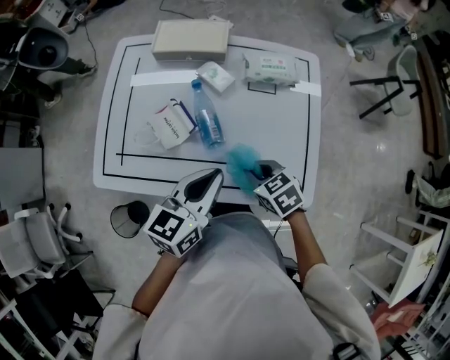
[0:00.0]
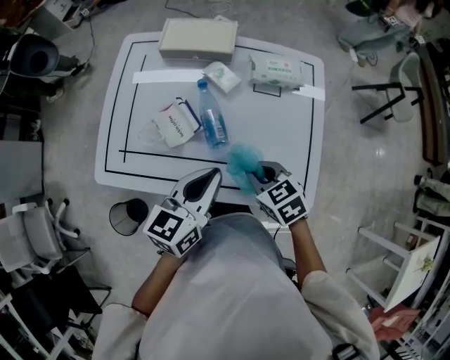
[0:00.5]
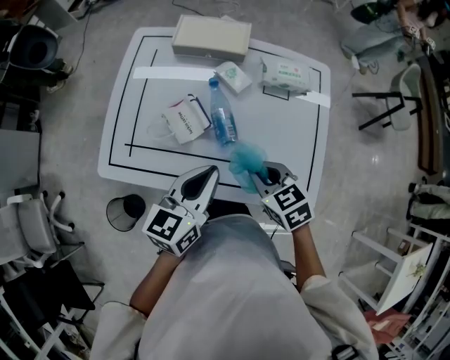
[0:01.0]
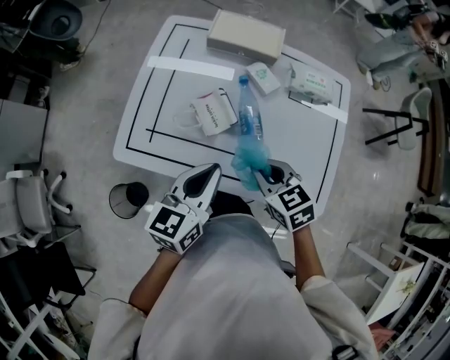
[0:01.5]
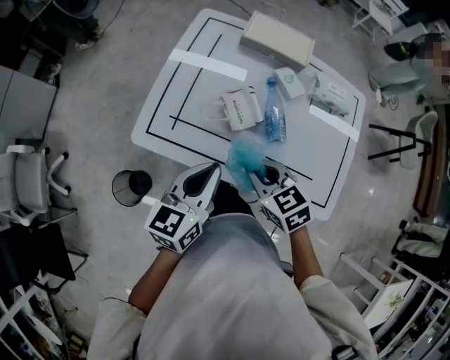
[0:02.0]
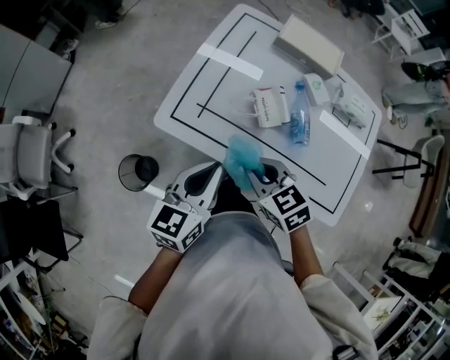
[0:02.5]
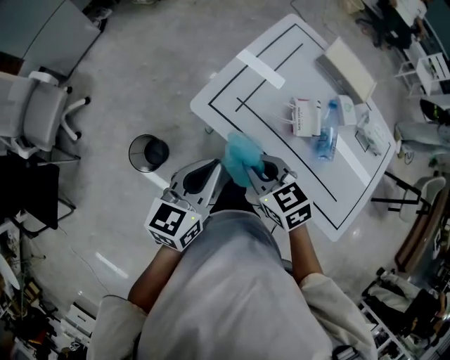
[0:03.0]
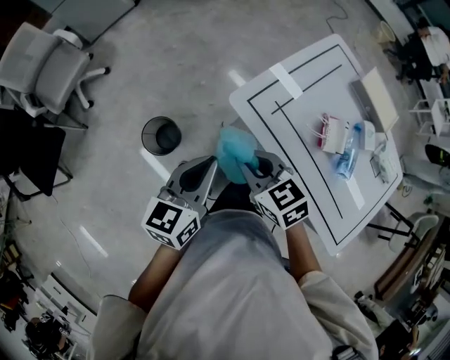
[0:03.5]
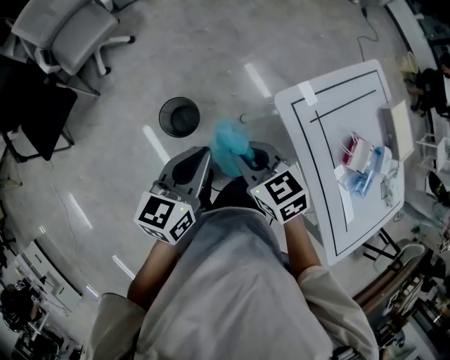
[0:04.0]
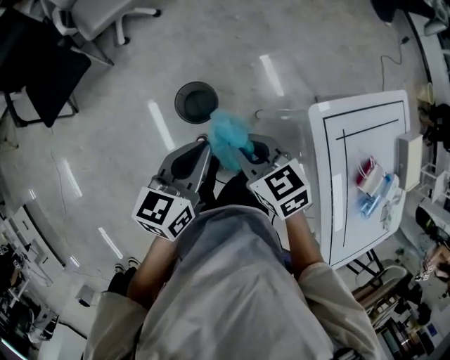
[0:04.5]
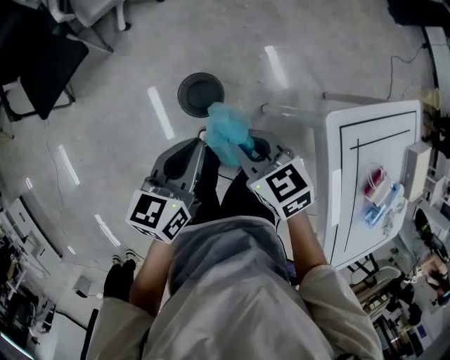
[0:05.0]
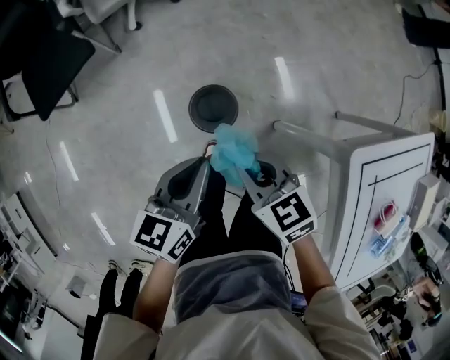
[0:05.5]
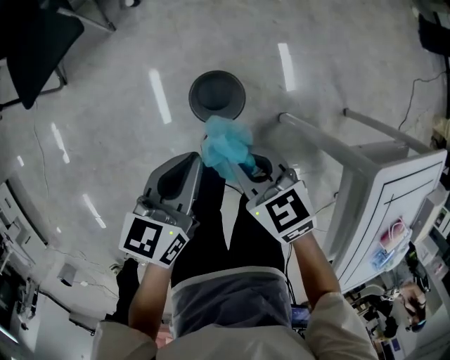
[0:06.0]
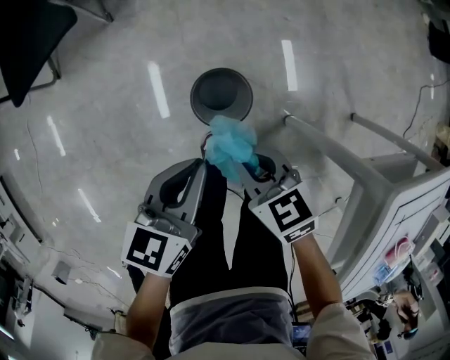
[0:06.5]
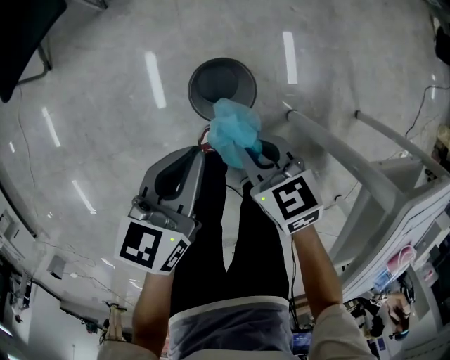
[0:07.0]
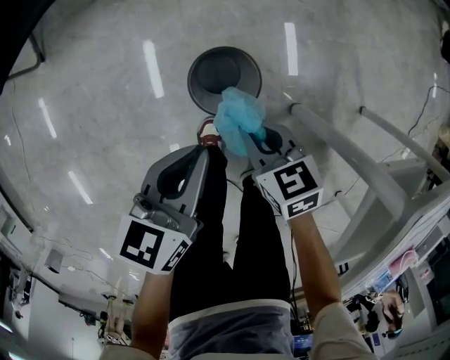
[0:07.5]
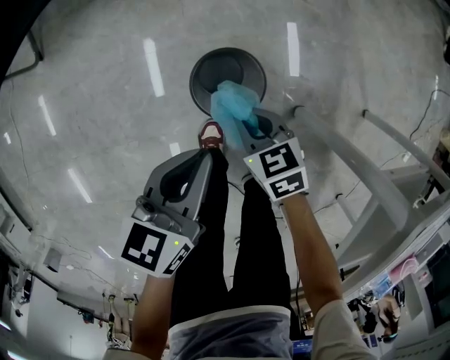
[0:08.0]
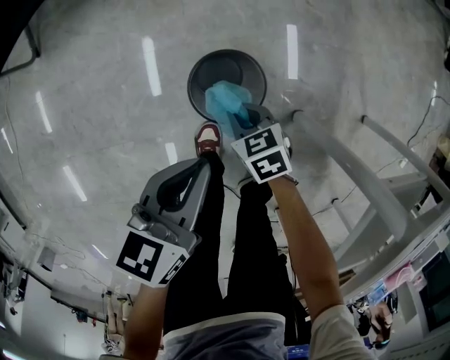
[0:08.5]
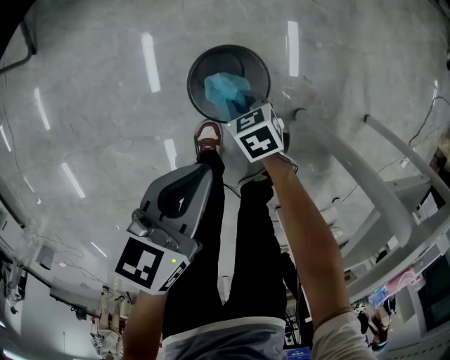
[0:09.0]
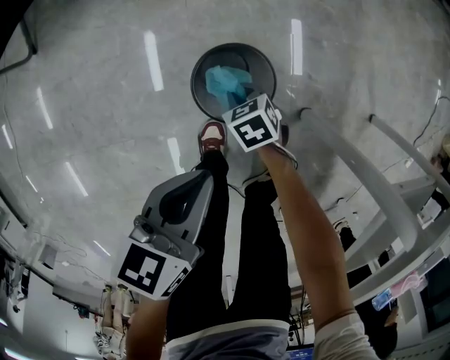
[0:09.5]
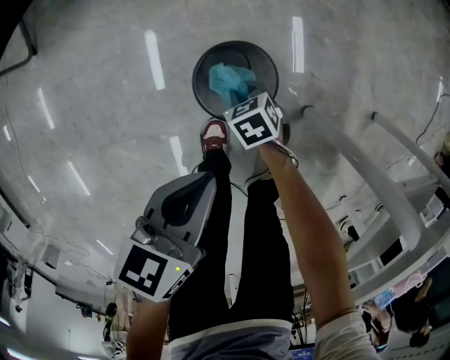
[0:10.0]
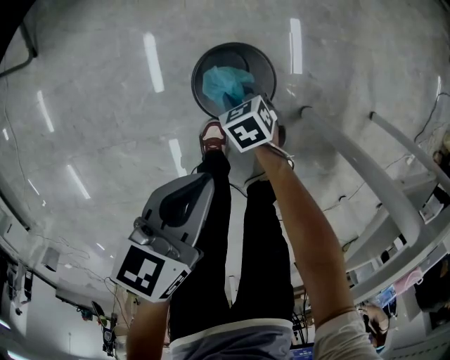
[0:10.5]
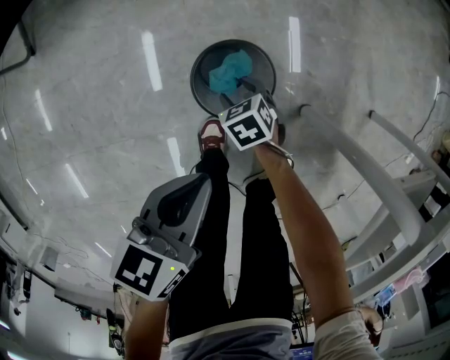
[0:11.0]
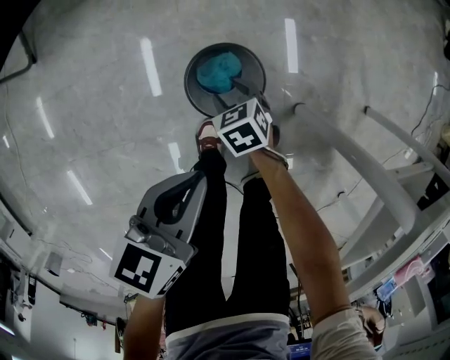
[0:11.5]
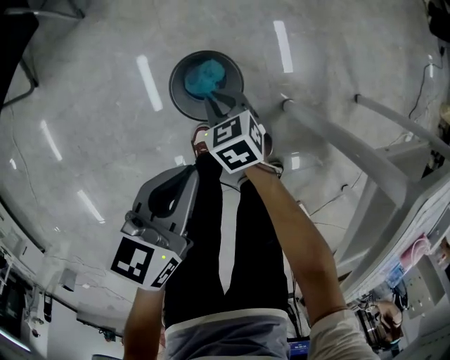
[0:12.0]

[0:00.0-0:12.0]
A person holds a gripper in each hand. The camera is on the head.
0:00.0 to 0:02.0: The right gripper goes roughly 20 cm to the left and upward; the left gripper heads to the left, covering roughly 20 cm.
0:02.0 to 0:04.0: The left gripper ends up about 40 cm from where it was, and changes its angle by roughly 40 degrees. Meanwhile the right gripper moves about 40 cm, and changes its angle by about 40 degrees.
0:04.0 to 0:06.0: The grippers both shift downward, to the left and forward by about 30 cm. The left gripper swivels about 20 degrees, while the right gripper turns by approximately 20 degrees.
0:06.0 to 0:08.0: The left gripper goes approximately 15 cm downward; the right gripper goes about 25 cm downward.
0:08.0 to 0:10.0: The right gripper heads downward, covering roughly 15 cm.
0:10.0 to 0:12.0: The right gripper shifts roughly 15 cm upward, and opens, then closes again. Meanwhile the left gripper is displaced upward by some 5 cm.

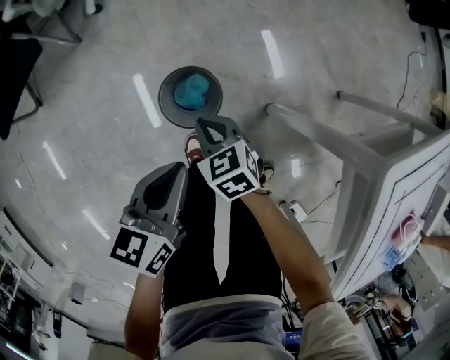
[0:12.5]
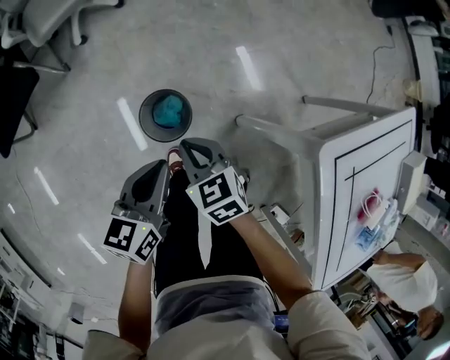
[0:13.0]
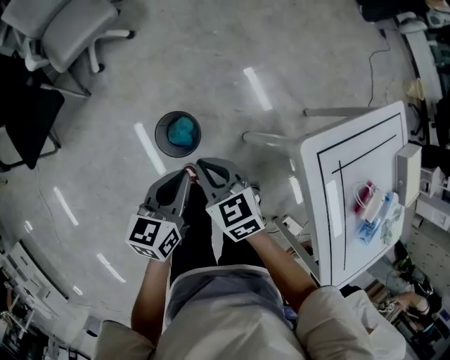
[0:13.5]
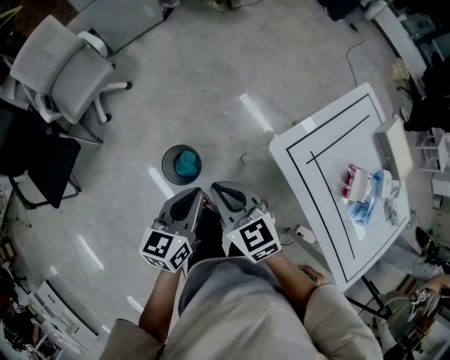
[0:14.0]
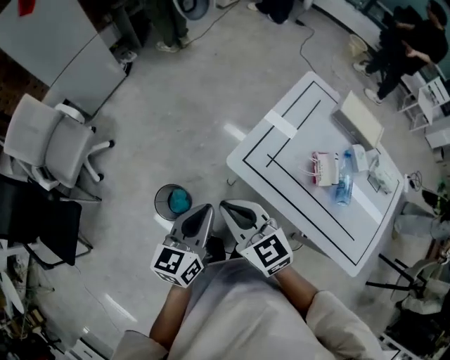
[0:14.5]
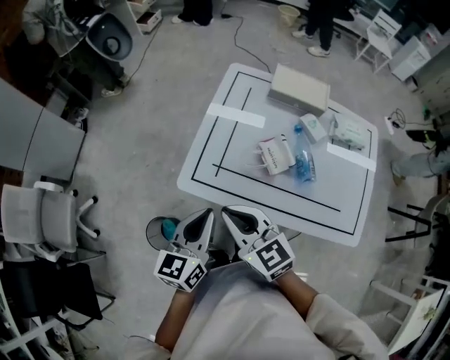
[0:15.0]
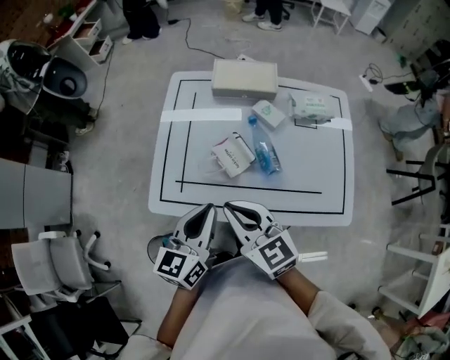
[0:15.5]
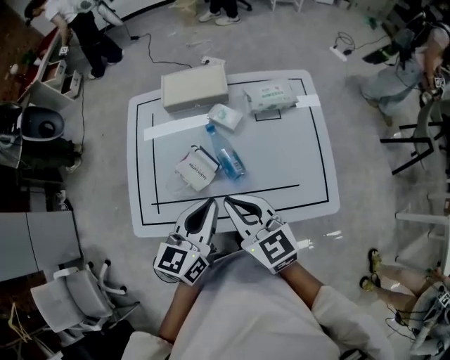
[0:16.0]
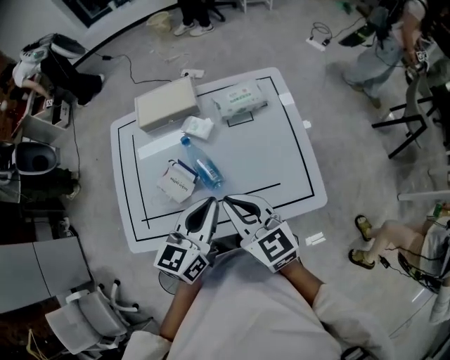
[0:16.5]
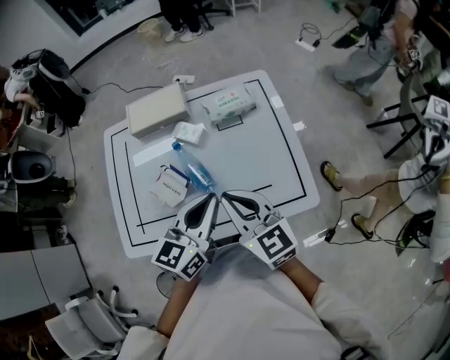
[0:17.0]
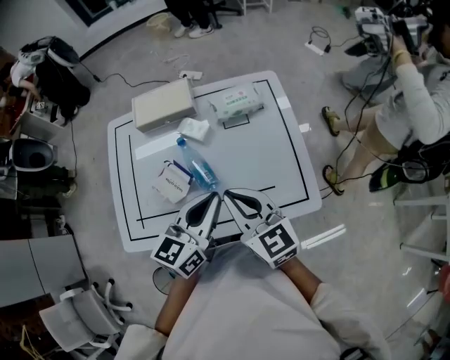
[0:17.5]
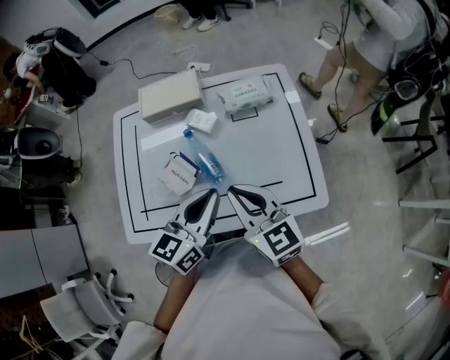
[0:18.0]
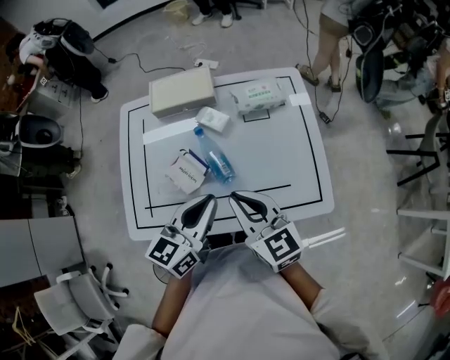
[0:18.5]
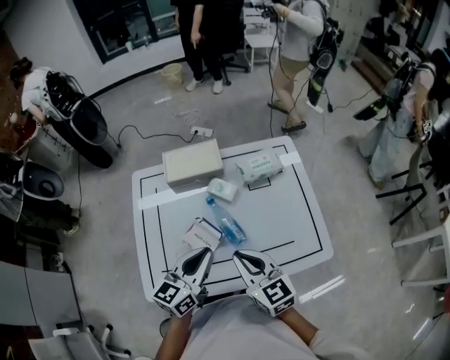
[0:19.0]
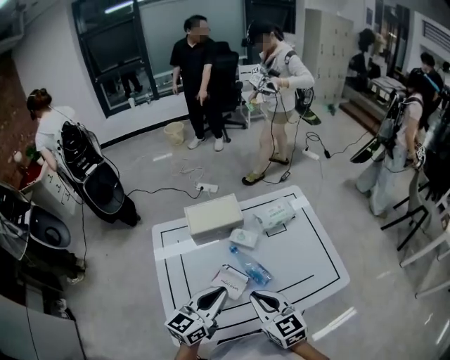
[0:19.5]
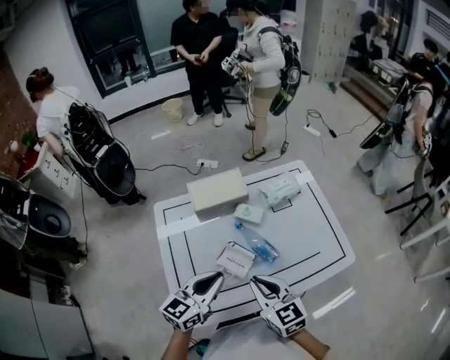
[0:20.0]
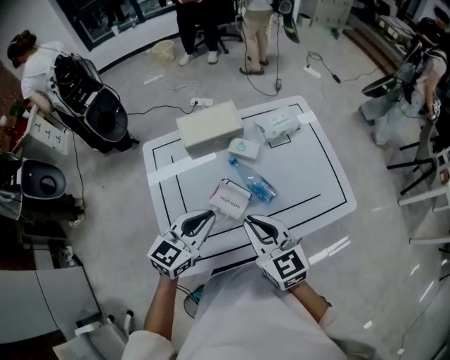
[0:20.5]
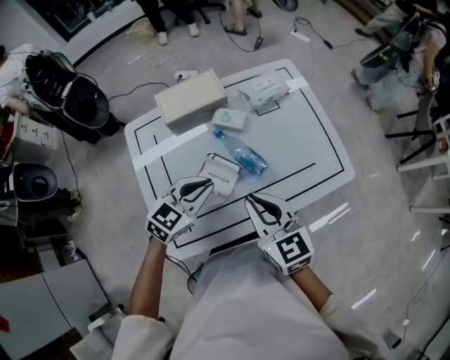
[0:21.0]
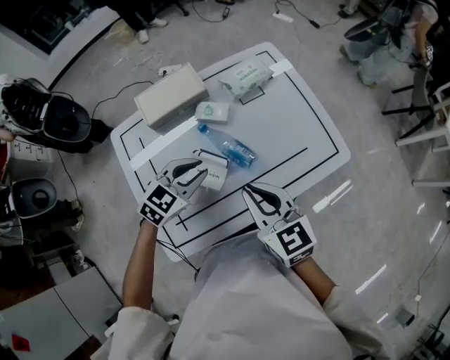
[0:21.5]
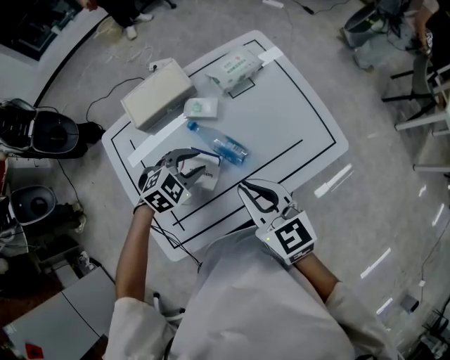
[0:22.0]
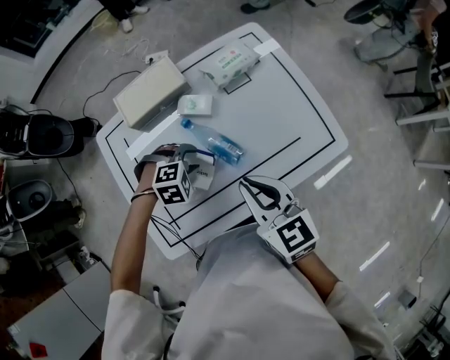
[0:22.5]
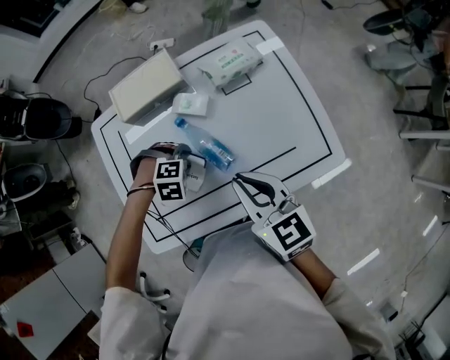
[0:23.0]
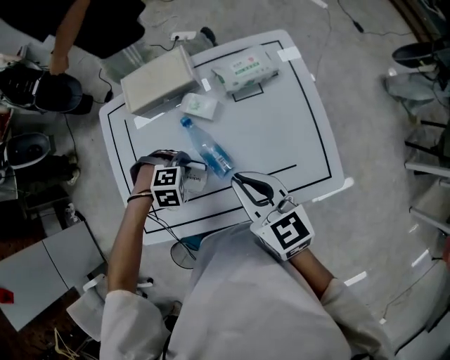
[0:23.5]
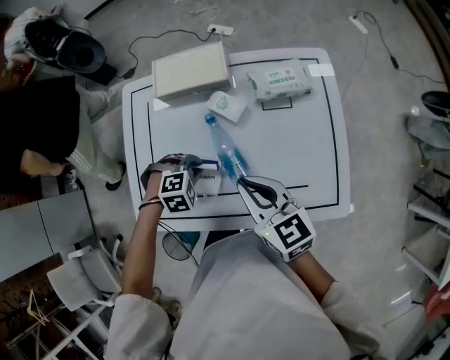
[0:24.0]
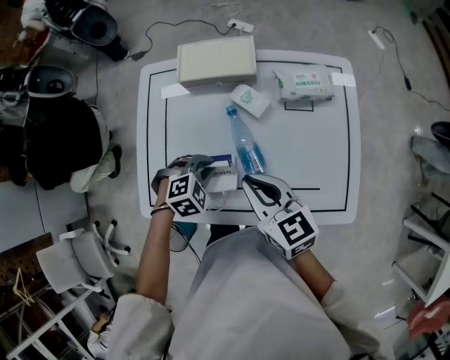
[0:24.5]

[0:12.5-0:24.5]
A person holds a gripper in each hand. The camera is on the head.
0:12.5 to 0:14.5: Both grippers travel together upward, roughly 40 cm. The left gripper swivels some 40 degrees. The right gripper points its fingers roughly 30 degrees further upward.
0:14.5 to 0:16.5: Both grippers are carried approximately 50 cm. The left gripper swivels some 50 degrees. Meanwhile the right gripper rotates about 50 degrees.
0:16.5 to 0:18.5: The grippers stay close to where they were, moving slightly.
0:18.5 to 0:20.5: Both grippers travel together to the left, approximately 15 cm. The left gripper turns by approximately 30 degrees.
0:20.5 to 0:22.5: The left gripper travels downward and forward by approximately 20 cm, tips its fingers downward by roughly 60 degrees, and opens up, while the right gripper heads to the right, covering some 10 cm.
0:22.5 to 0:24.5: The left gripper turns by about 40 degrees, and closes its fingers. Meanwhile the right gripper changes place by some 5 cm, and rotates roughly 30 degrees.

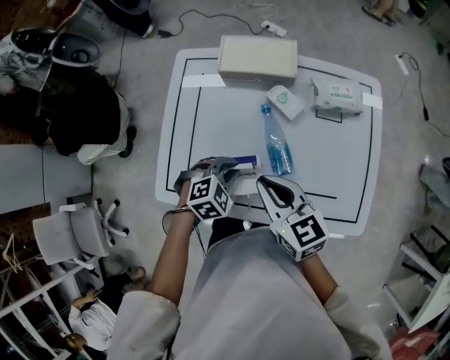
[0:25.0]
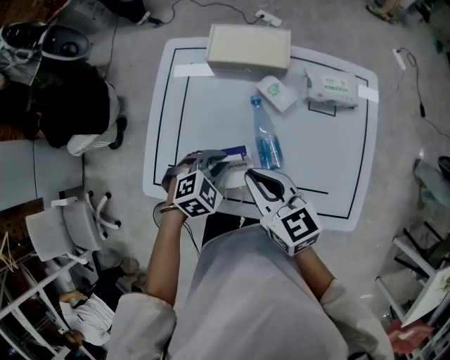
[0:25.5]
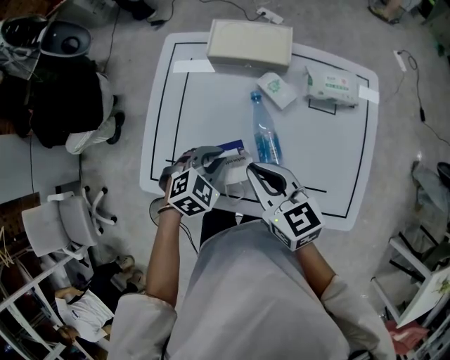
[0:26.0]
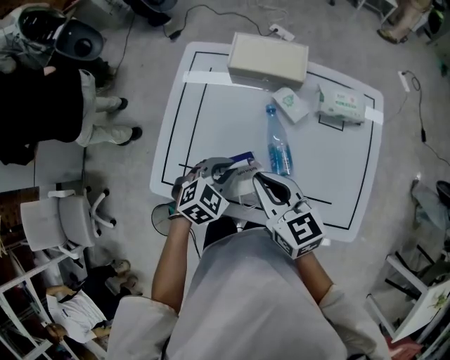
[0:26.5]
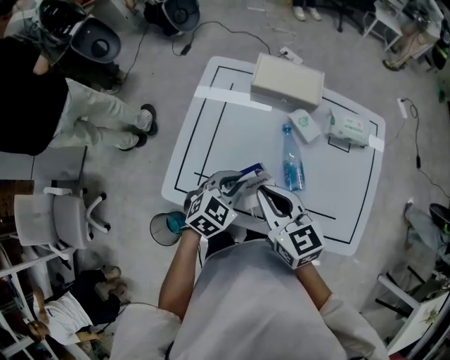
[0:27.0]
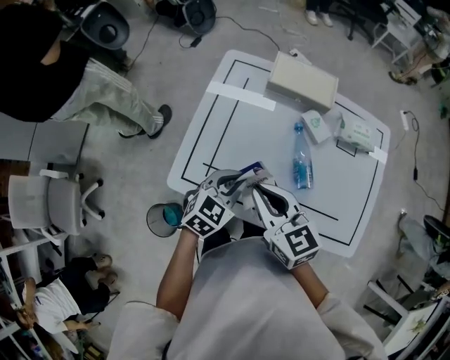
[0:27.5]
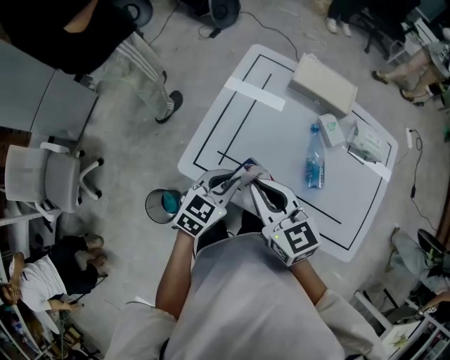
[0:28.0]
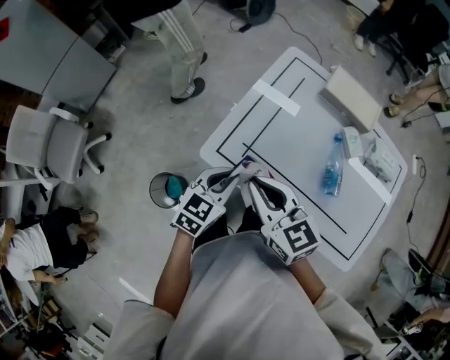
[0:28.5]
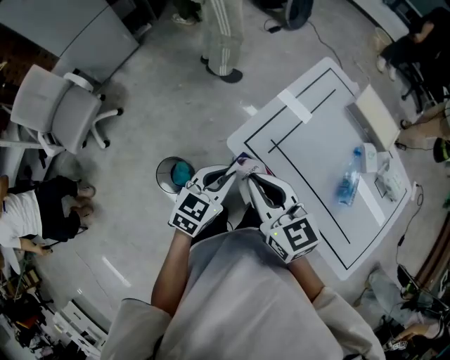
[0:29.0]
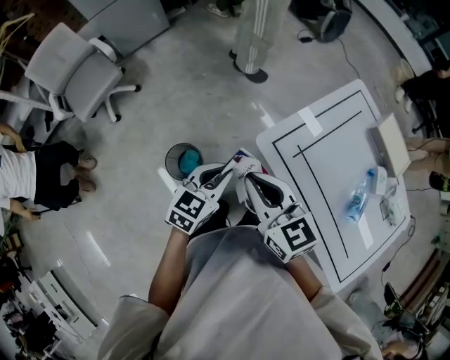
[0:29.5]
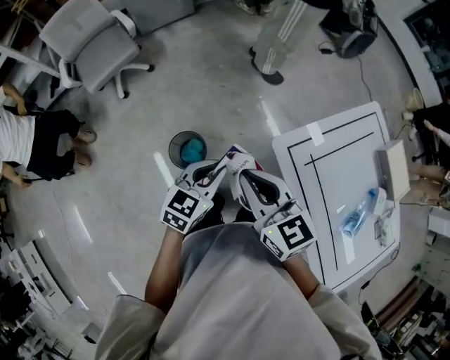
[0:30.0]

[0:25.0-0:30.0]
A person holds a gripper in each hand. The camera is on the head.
0:25.0 to 0:27.5: The right gripper is displaced to the left by about 10 cm. The left gripper heads upward and to the left, covering roughly 10 cm, and changes its angle by some 40 degrees.
0:27.5 to 0:30.0: The right gripper shifts by roughly 35 cm, and changes its angle by about 50 degrees; the left gripper moves approximately 40 cm, and rotates about 60 degrees.
